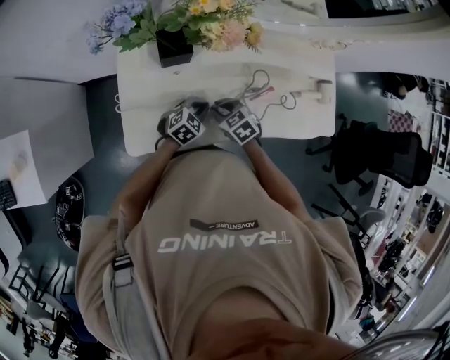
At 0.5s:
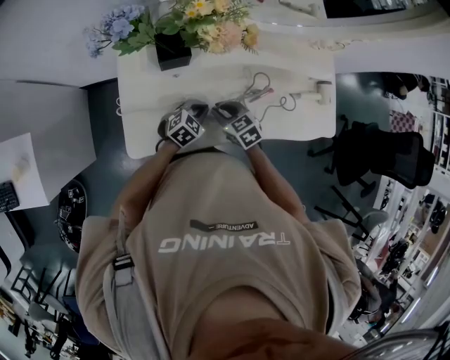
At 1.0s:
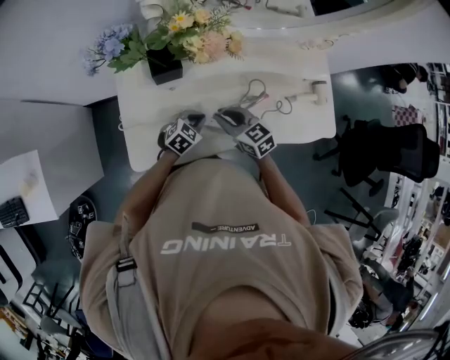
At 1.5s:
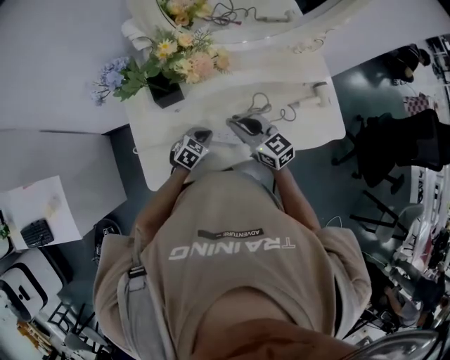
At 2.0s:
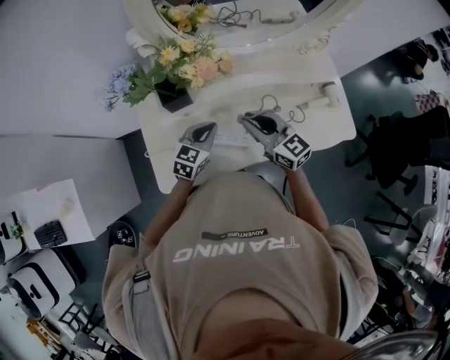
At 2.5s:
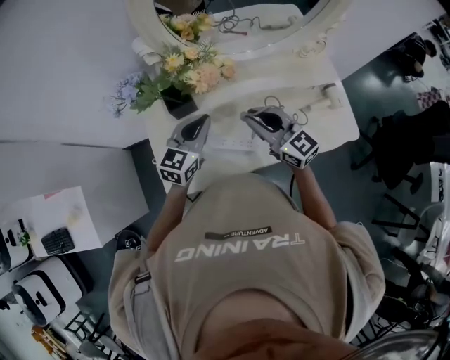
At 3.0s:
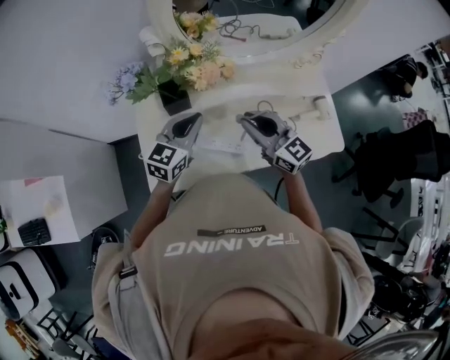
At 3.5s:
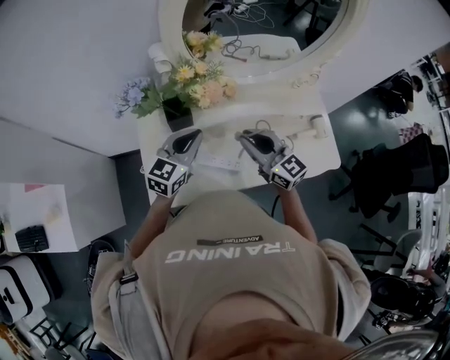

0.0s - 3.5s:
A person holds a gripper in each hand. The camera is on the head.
0.0s - 2.0s: The grippers both shift upward by approximately 15 cm. The left gripper turns by about 20 degrees, while the right gripper angles its fingers upward, by some 50 degrees.
2.0s - 3.5s: The left gripper moves upward, approximately 15 cm. Meanwhile the right gripper heads upward, covering approximately 5 cm.

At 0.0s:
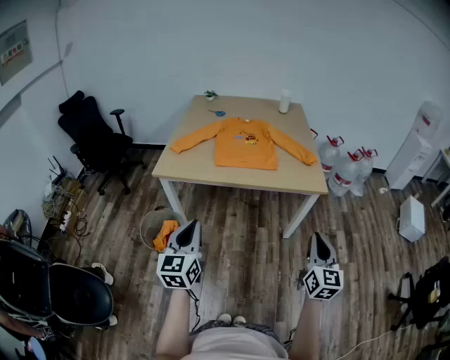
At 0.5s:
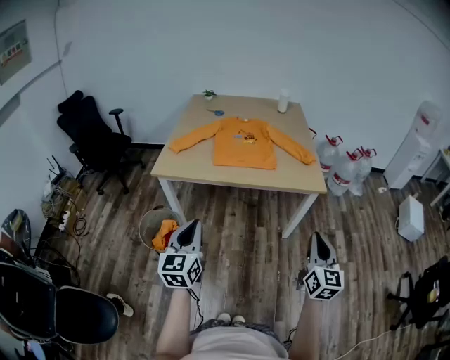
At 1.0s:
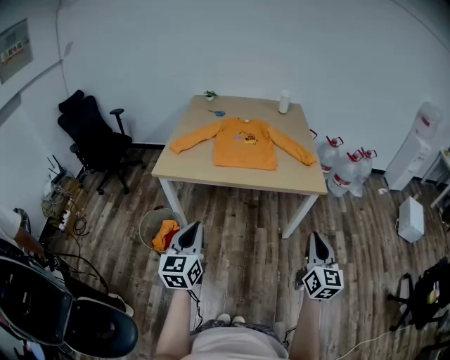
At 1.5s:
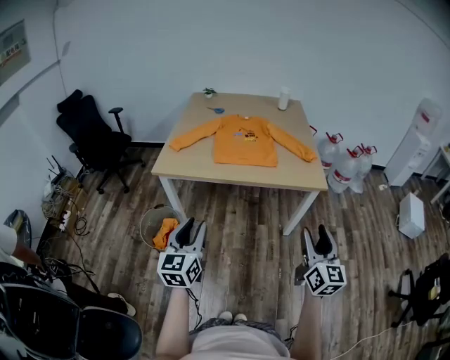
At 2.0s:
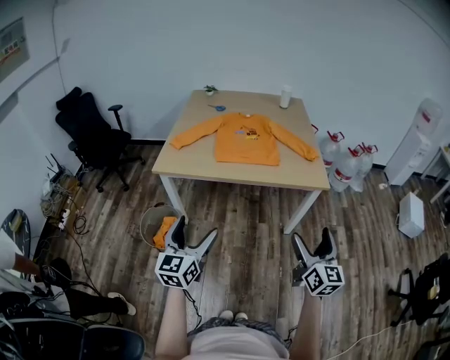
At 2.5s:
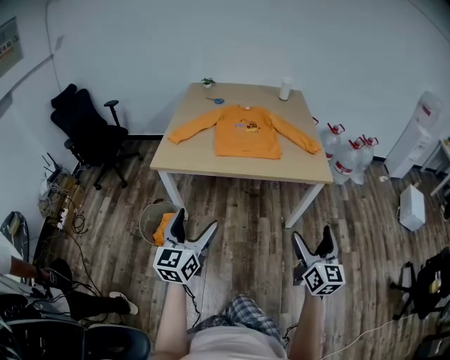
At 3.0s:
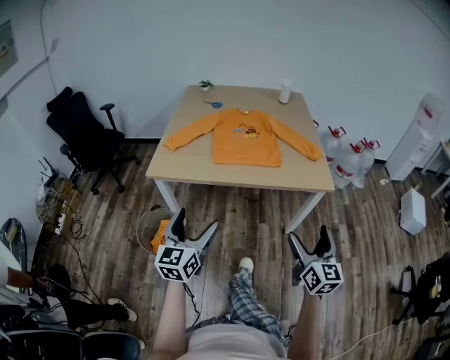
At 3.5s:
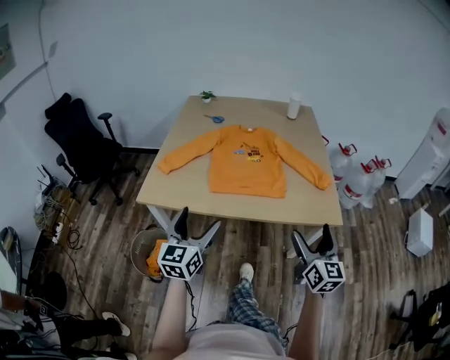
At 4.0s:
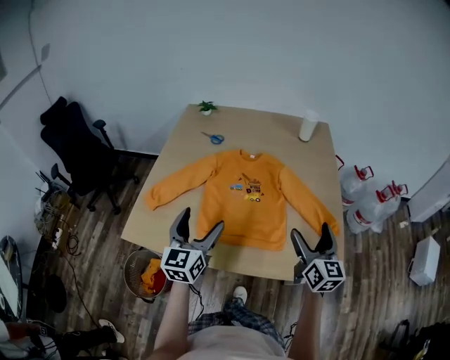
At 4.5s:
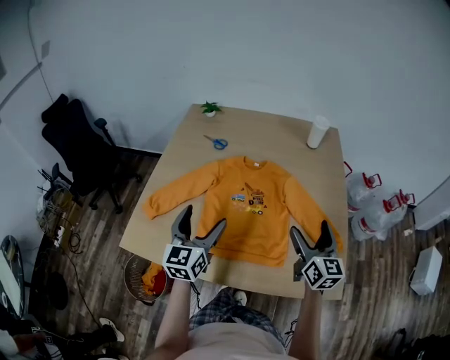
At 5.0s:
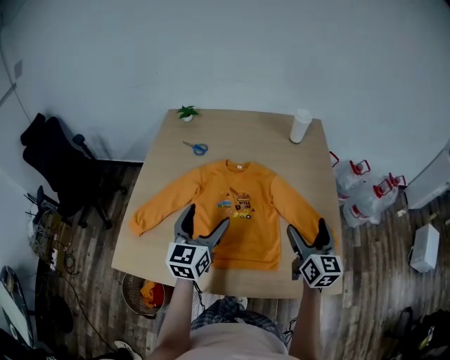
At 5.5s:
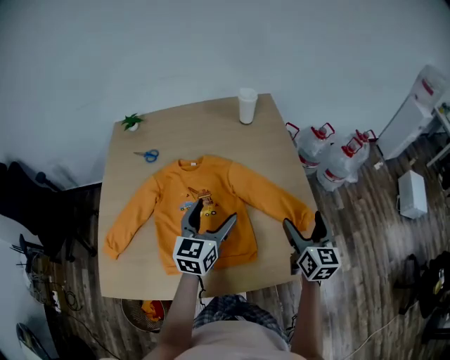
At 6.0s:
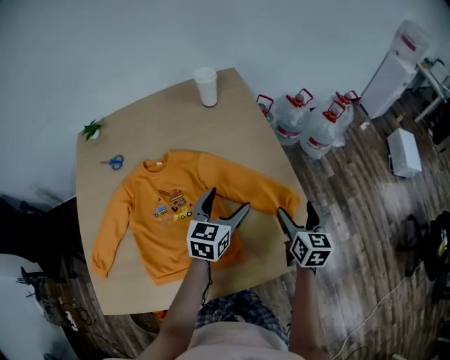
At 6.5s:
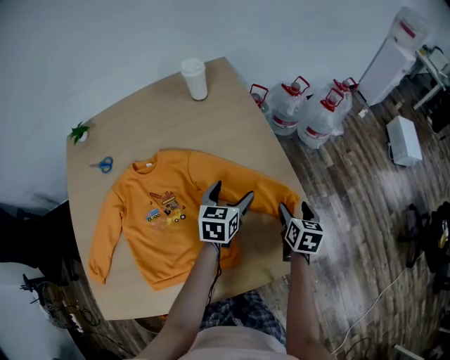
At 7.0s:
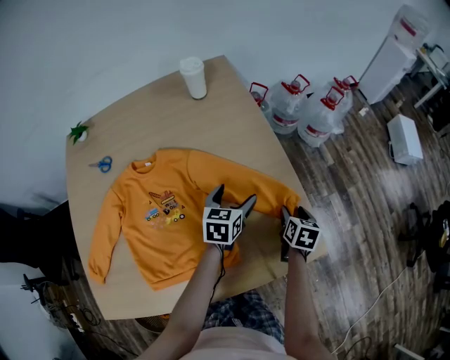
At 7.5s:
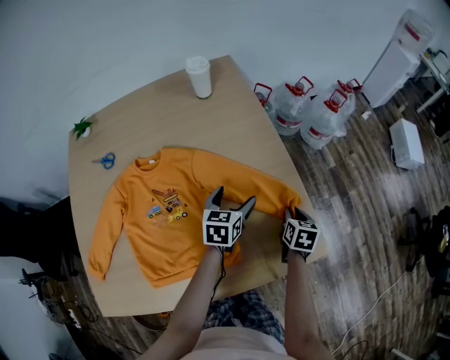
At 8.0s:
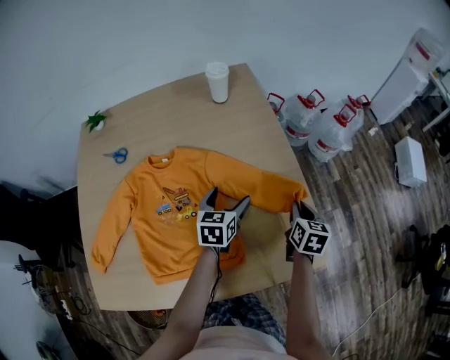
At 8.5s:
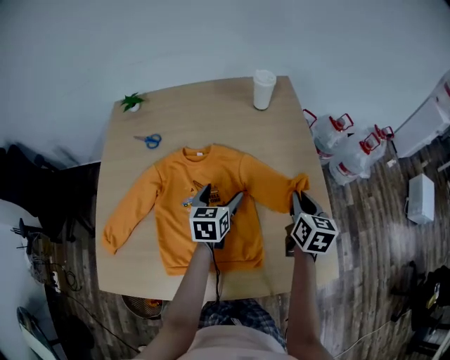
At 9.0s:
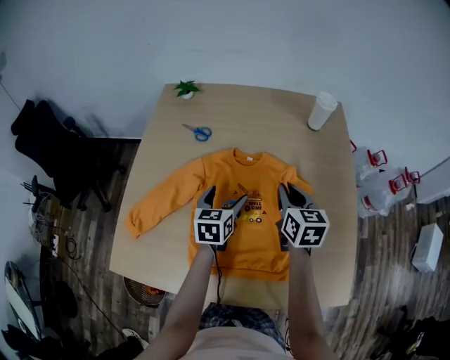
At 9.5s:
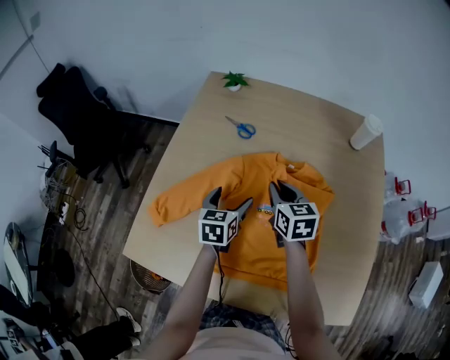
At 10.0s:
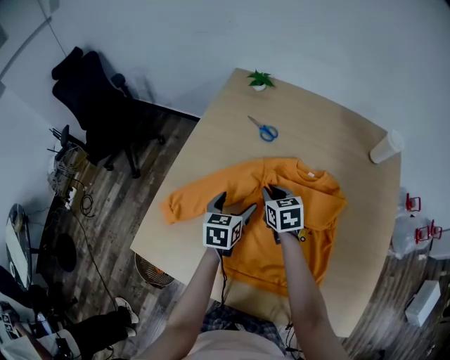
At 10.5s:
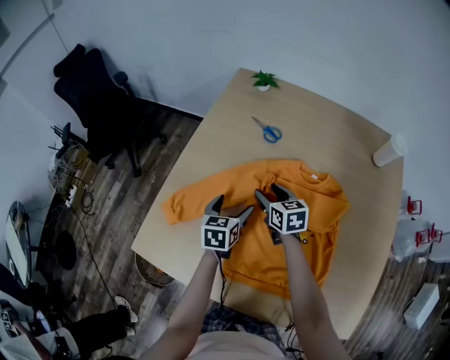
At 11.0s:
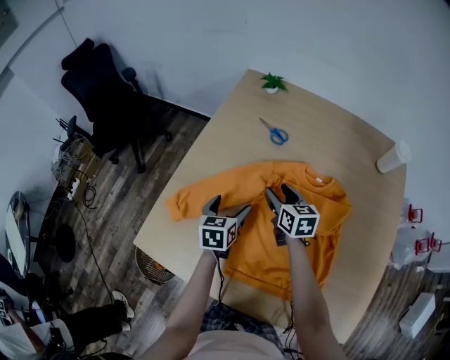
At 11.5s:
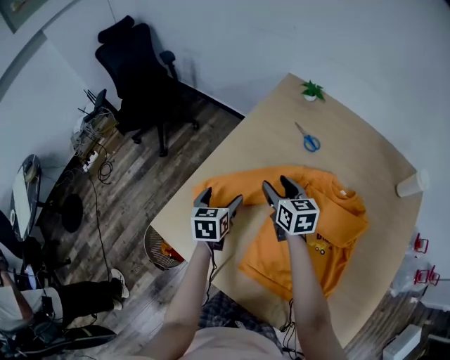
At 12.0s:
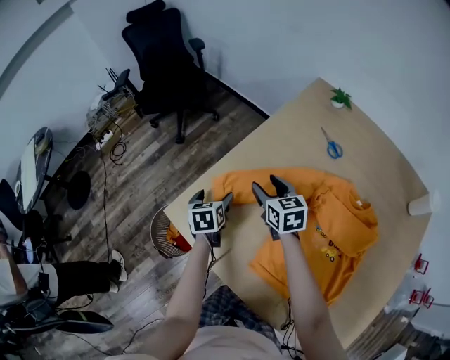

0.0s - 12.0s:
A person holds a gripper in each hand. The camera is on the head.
0.0s - 2.0s: The right gripper opens up. Meanwhile the left gripper opens its fingers.
2.0s - 4.0s: The two grippers travel together, forward, approximately 50 cm.
4.0s - 6.0s: The right gripper moves some 20 cm, and swivels roughly 40 degrees, while the left gripper moves some 40 cm, and changes its angle by approximately 40 degrees.
6.0s - 8.0s: The two grippers go about 5 cm downward. The right gripper closes up.
8.0s - 10.0s: The two grippers travel together, about 50 cm. The right gripper changes its angle by roughly 60 degrees, while the left gripper changes its angle by approximately 40 degrees.
10.0s - 12.0s: The left gripper moves about 25 cm, and turns by roughly 40 degrees; the right gripper moves about 20 cm, rotates some 30 degrees, and opens.

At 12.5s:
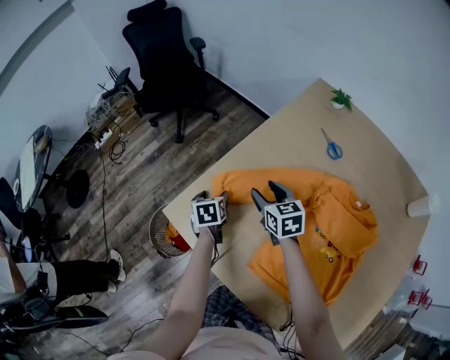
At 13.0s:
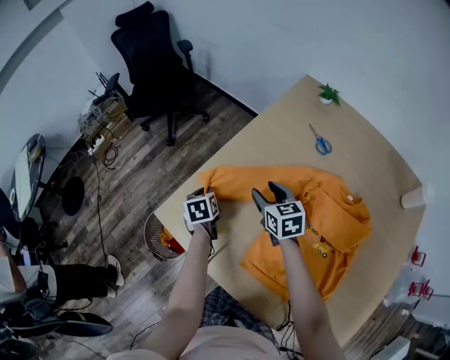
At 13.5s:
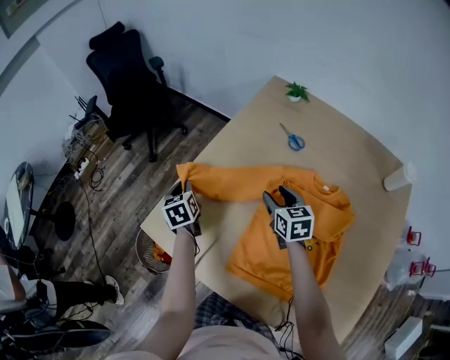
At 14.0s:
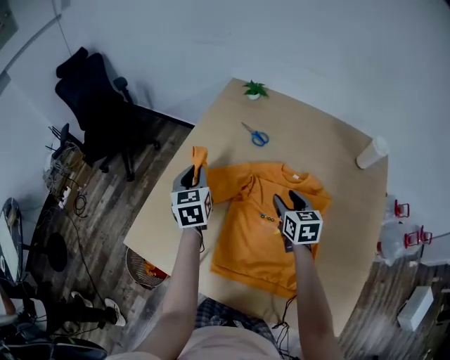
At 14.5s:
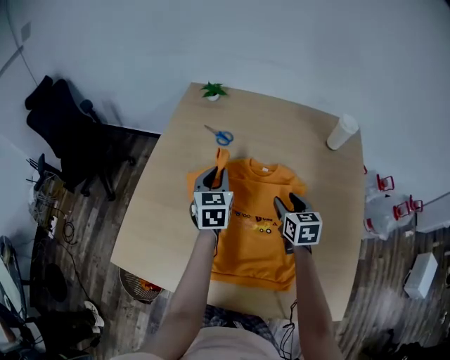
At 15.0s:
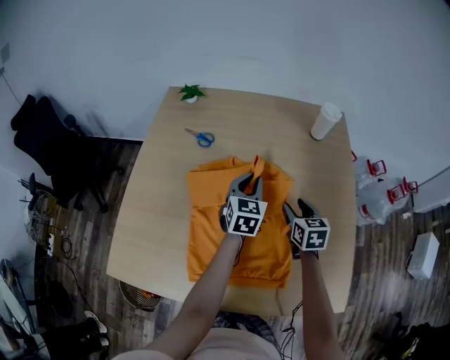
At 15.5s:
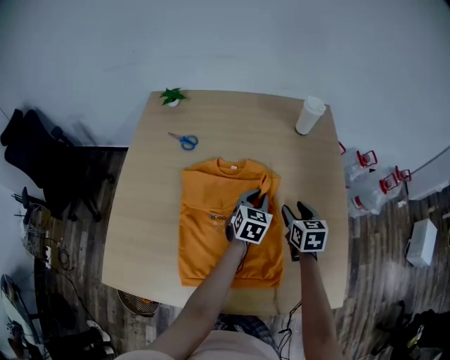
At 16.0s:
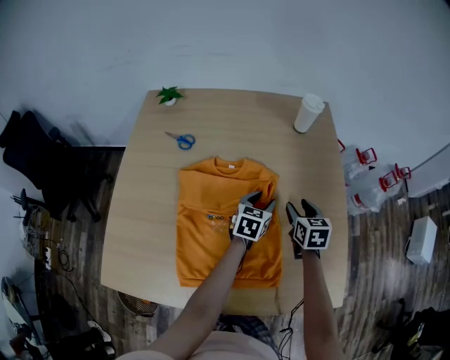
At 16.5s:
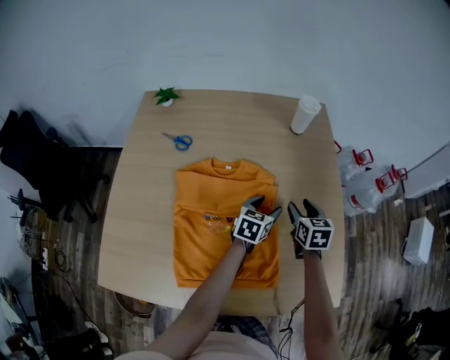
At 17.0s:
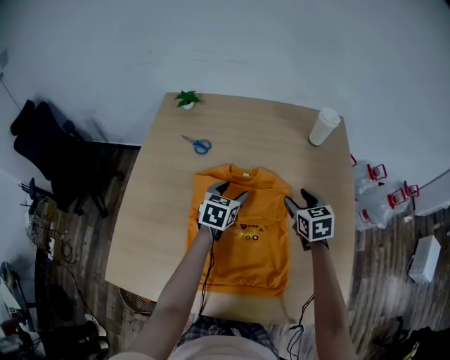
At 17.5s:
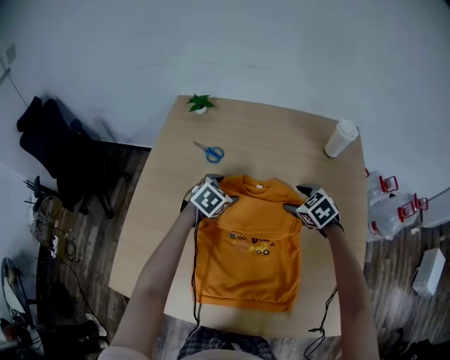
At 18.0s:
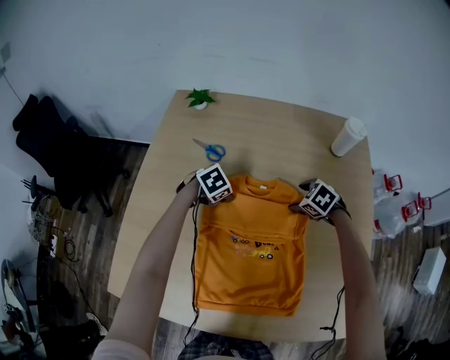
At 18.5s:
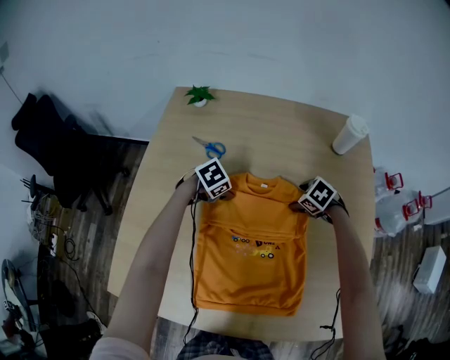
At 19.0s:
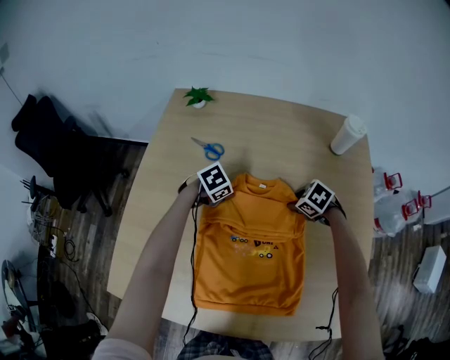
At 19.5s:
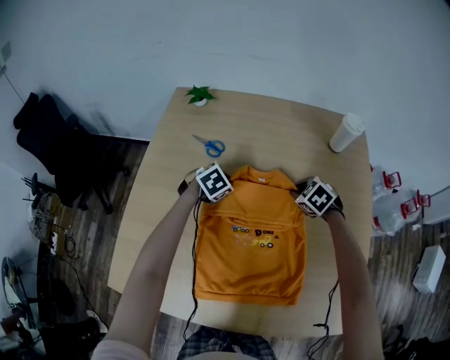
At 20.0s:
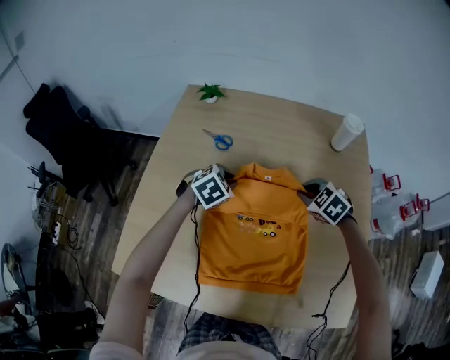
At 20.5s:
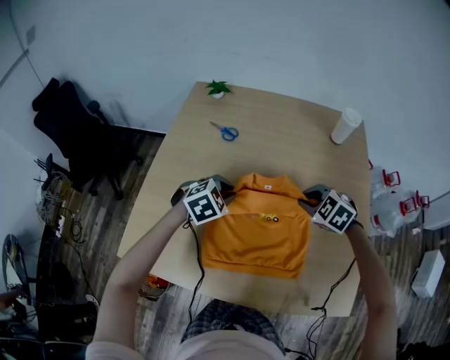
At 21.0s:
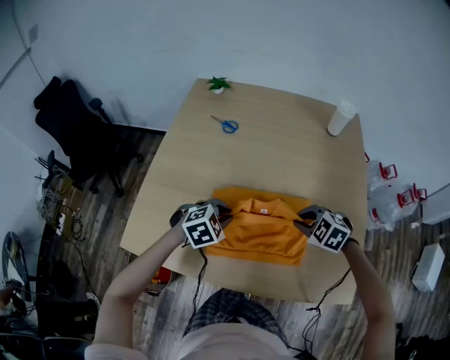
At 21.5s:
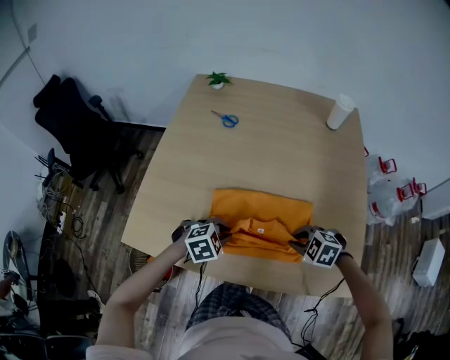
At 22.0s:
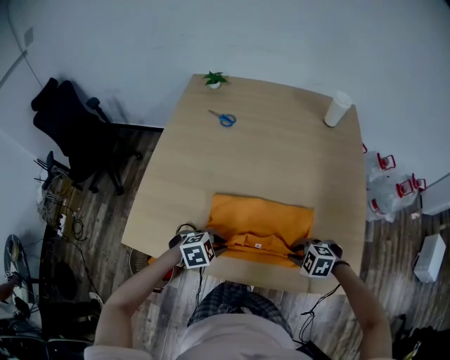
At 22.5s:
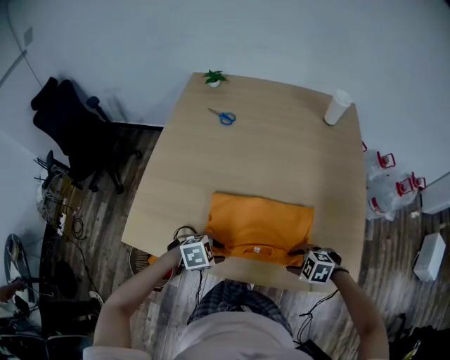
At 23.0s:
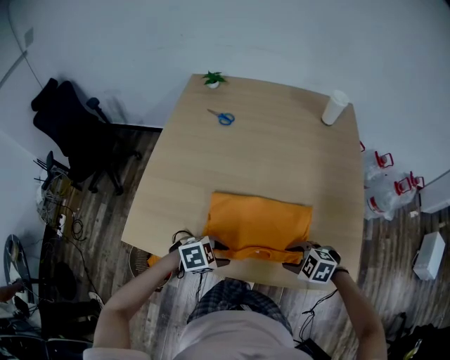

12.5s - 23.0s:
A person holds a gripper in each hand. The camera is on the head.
12.5s - 14.5s: The right gripper changes place by about 40 cm, and turns by roughly 40 degrees. The left gripper moves roughly 40 cm, turns by about 50 degrees, and closes its fingers.
14.5s - 16.5s: The left gripper moves about 35 cm, changes its angle by some 40 degrees, and opens its fingers. Meanwhile the right gripper changes place by roughly 15 cm.
16.5s - 19.0s: The right gripper moves about 20 cm, and changes its angle by about 70 degrees, while the left gripper changes place by approximately 30 cm, points its fingers approximately 30 degrees further downward, and closes up.
19.0s - 21.0s: The left gripper ends up some 30 cm from where it was, and turns by roughly 20 degrees. The right gripper shifts by roughly 25 cm, and swivels approximately 30 degrees.
21.0s - 23.0s: The left gripper ends up approximately 20 cm from where it was, and swivels approximately 20 degrees; the right gripper moves about 20 cm.
